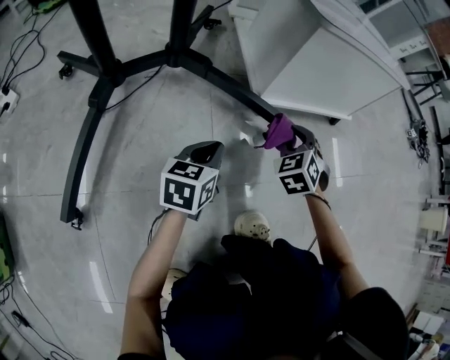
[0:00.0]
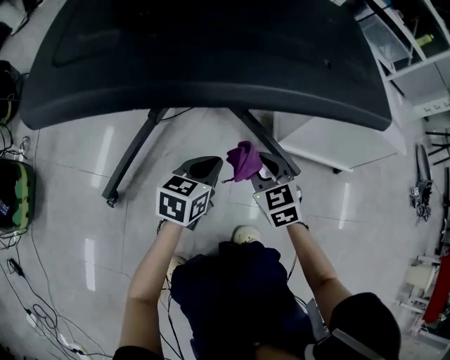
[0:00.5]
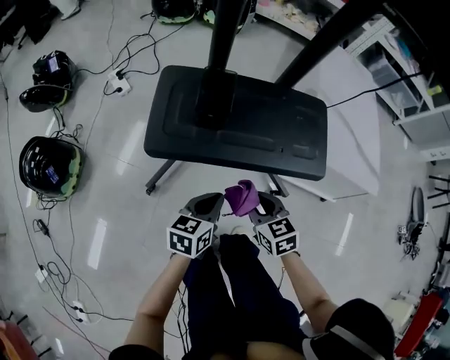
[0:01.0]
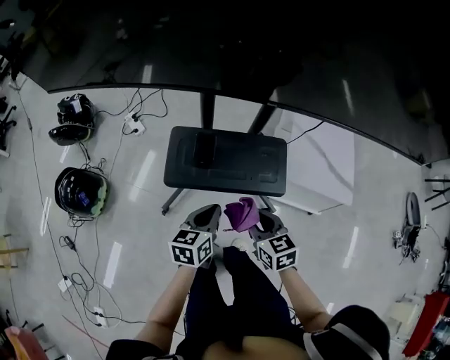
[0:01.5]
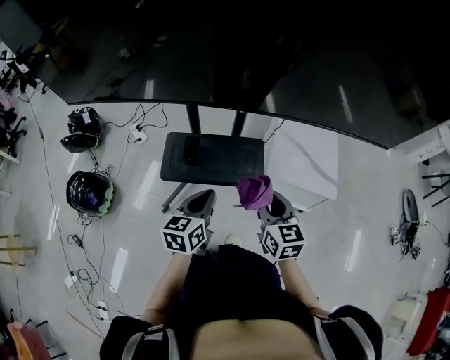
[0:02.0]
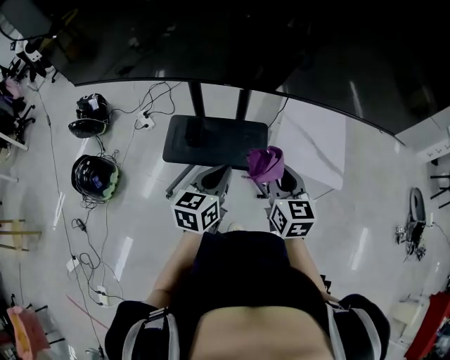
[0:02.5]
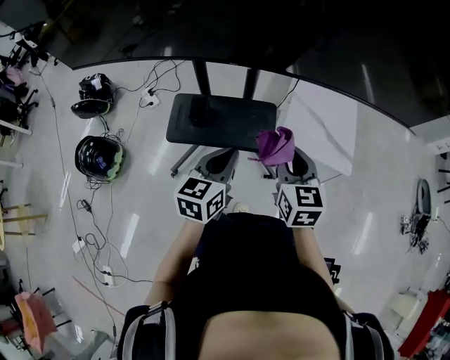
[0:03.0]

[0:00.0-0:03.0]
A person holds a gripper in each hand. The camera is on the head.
0:00.0 to 0:01.5: Both grippers move upward, roughly 60 cm. The left gripper turns by some 30 degrees; the right gripper swivels some 60 degrees.
0:01.5 to 0:03.0: Both grippers move upward and to the right, some 25 cm. The right gripper swivels some 20 degrees.

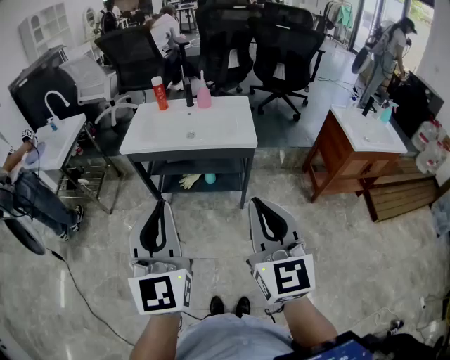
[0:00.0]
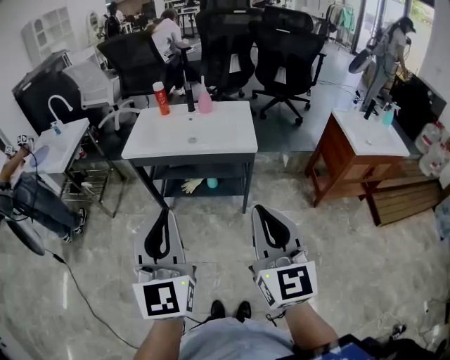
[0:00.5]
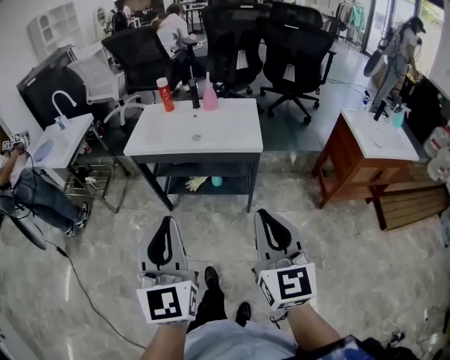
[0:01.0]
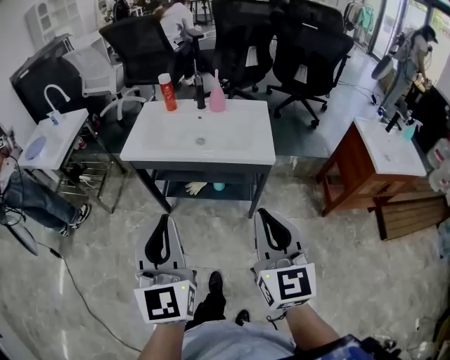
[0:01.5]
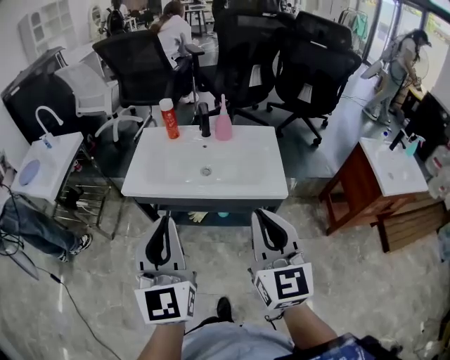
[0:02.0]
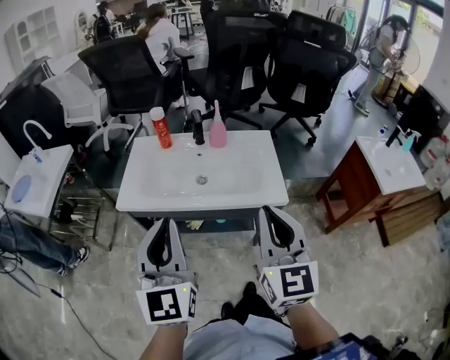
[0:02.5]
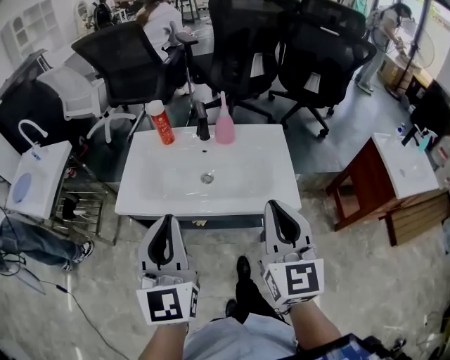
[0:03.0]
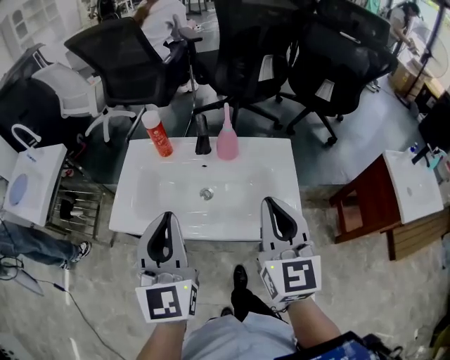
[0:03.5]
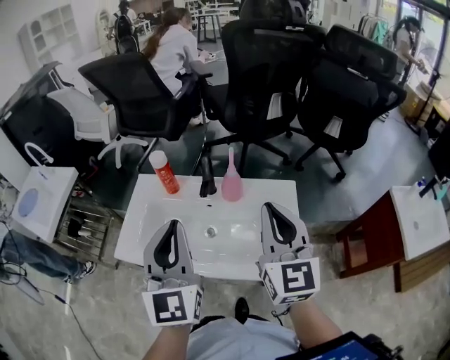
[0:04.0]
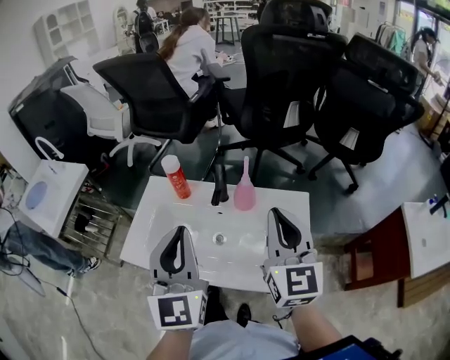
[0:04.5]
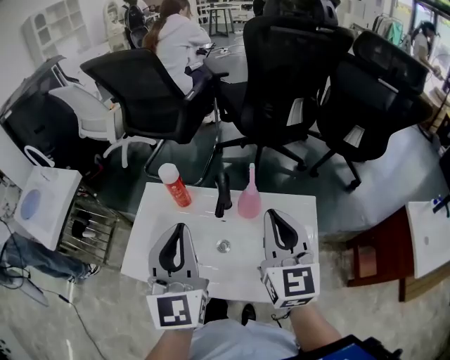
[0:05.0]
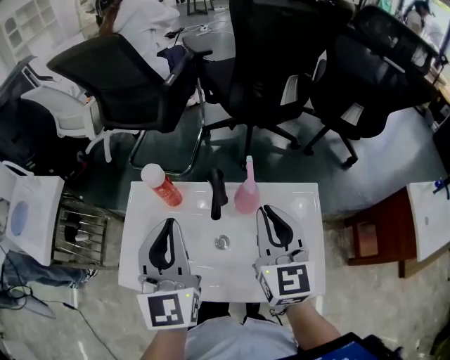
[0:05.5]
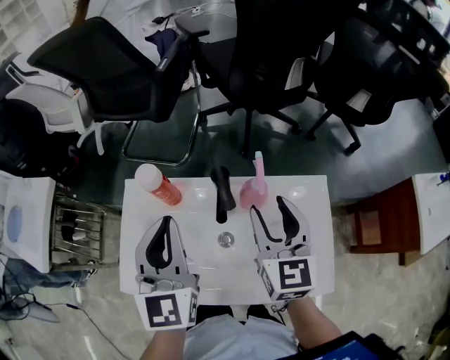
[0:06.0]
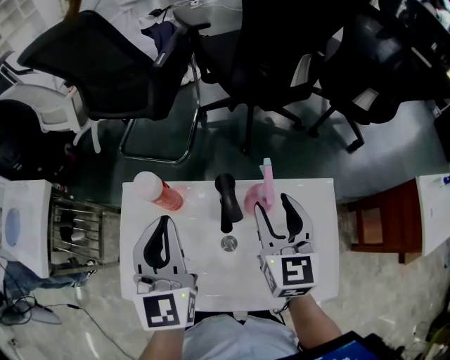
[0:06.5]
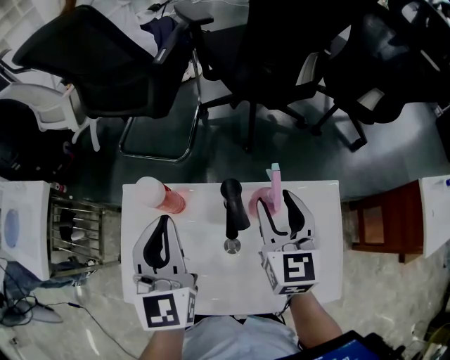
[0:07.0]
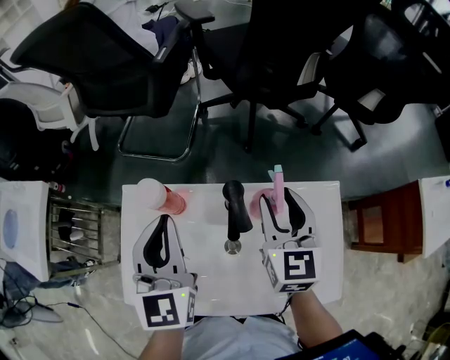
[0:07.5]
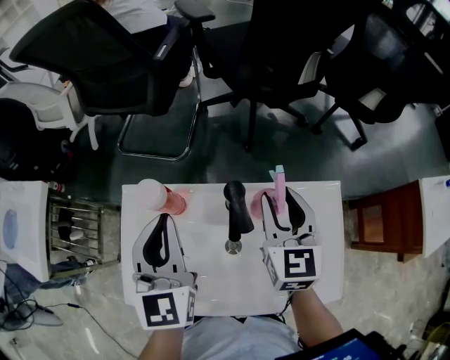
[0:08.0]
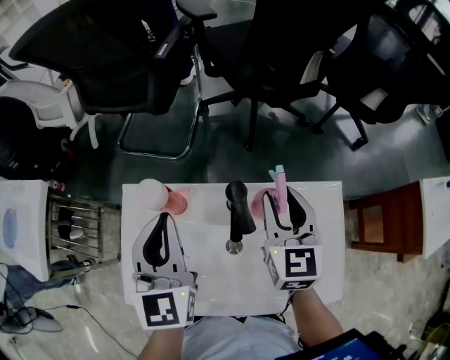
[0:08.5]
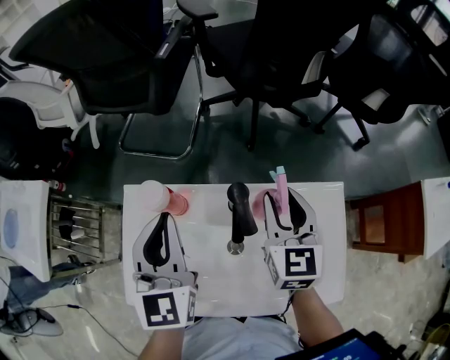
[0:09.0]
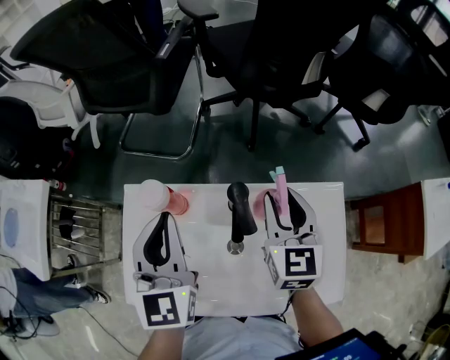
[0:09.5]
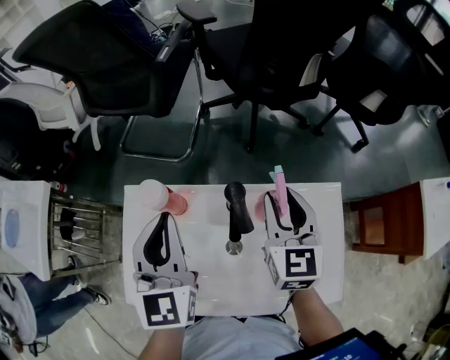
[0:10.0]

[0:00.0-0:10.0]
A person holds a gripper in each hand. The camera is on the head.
0:00.0 to 0:02.0: The grippers both shift forward by some 25 cm.
0:02.0 to 0:04.0: Both grippers move forward, some 30 cm.
0:04.0 to 0:06.0: The two grippers go approximately 20 cm forward and downward. The right gripper opens up.
0:06.0 to 0:08.0: The grippers both shift forward by approximately 5 cm.
0:08.0 to 0:10.0: Neither gripper changes place.

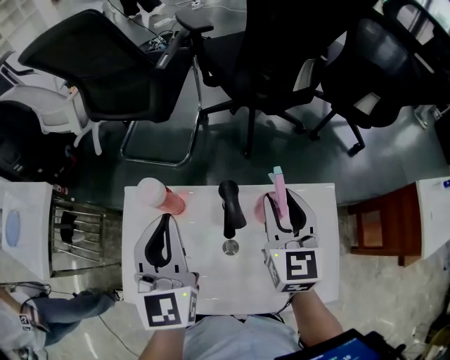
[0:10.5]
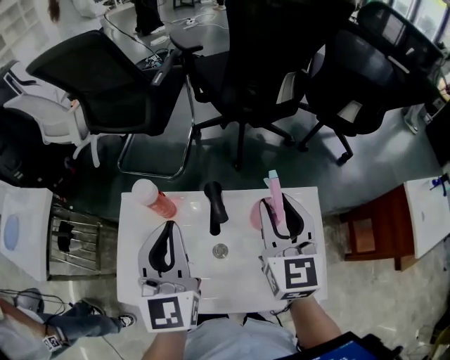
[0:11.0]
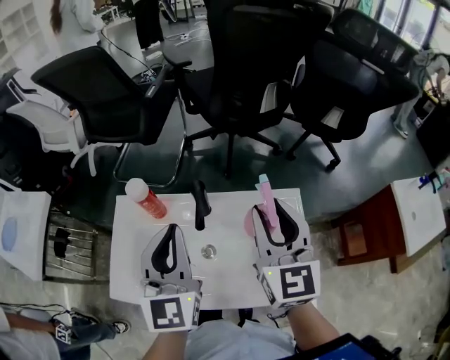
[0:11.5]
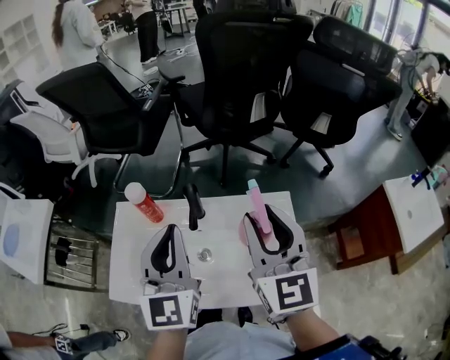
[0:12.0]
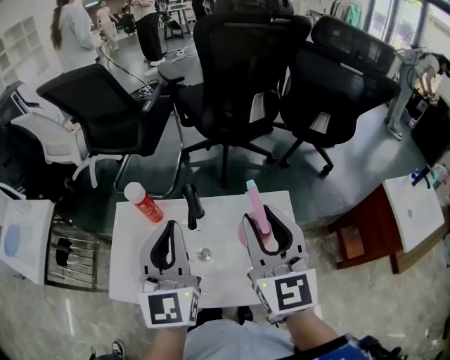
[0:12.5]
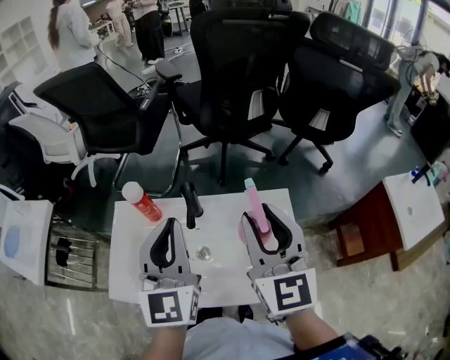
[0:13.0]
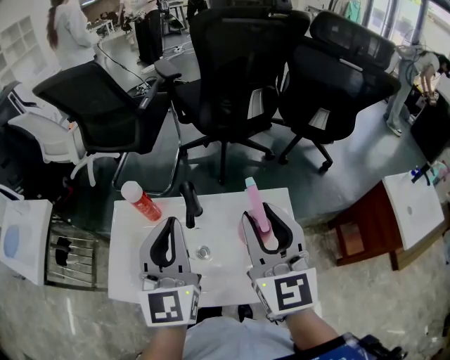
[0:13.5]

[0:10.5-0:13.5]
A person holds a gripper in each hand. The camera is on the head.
0:10.5 to 0:12.0: The right gripper goes approximately 20 cm backward and upward. Meanwhile the left gripper is displaced backward, to the right and upward by about 15 cm.
0:12.0 to 0:13.5: The grippers move only a little.

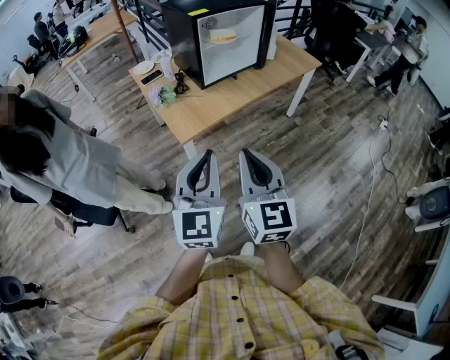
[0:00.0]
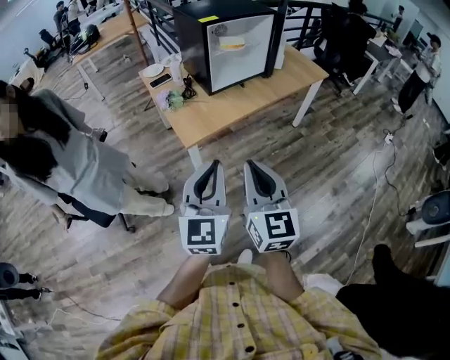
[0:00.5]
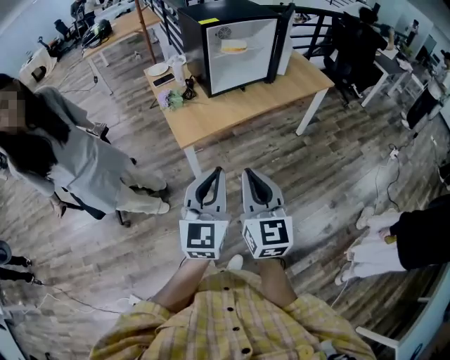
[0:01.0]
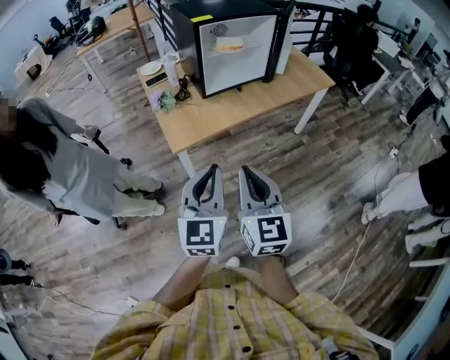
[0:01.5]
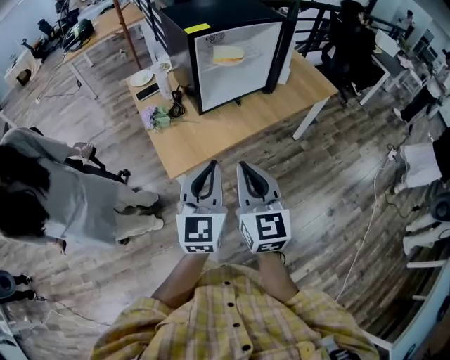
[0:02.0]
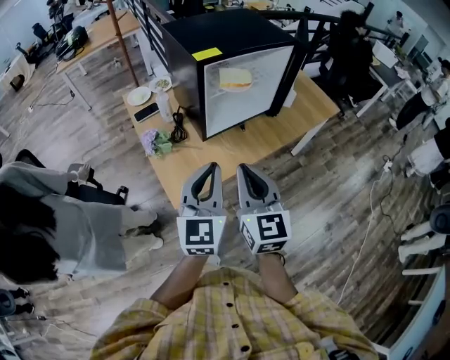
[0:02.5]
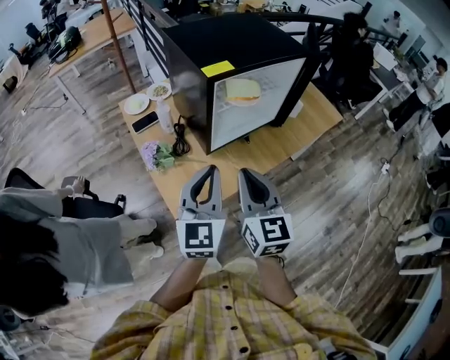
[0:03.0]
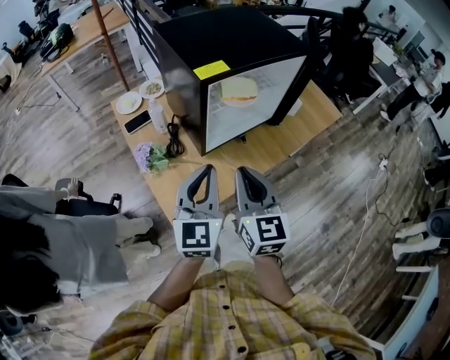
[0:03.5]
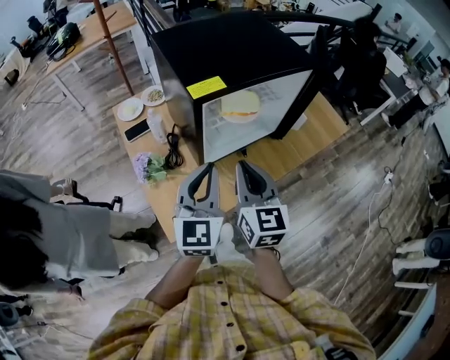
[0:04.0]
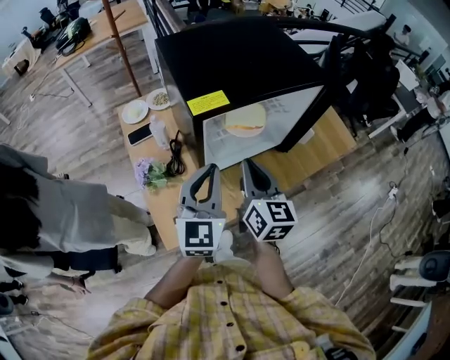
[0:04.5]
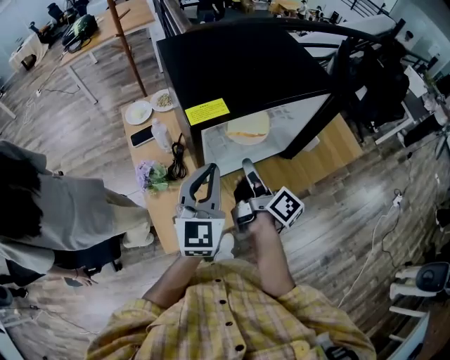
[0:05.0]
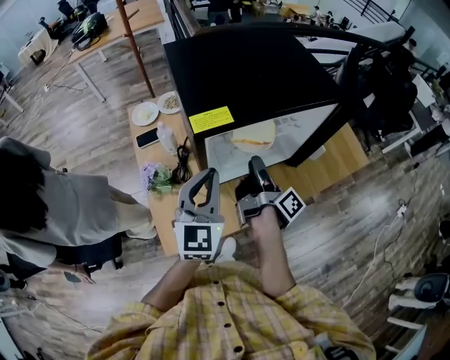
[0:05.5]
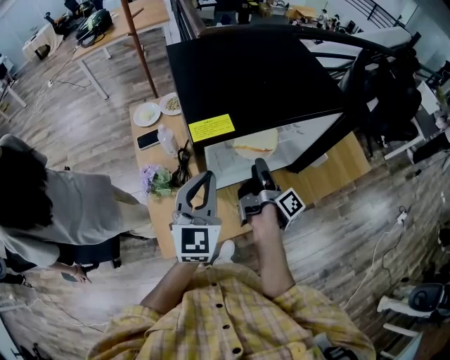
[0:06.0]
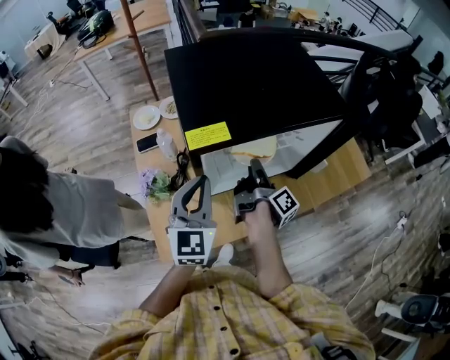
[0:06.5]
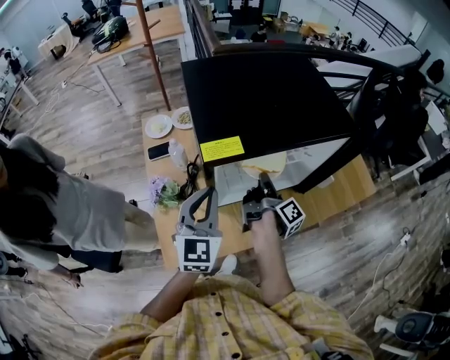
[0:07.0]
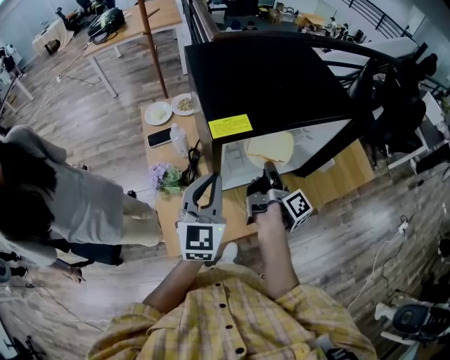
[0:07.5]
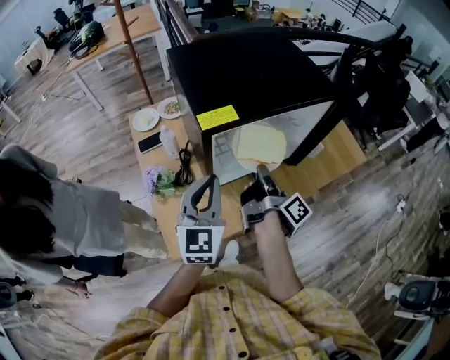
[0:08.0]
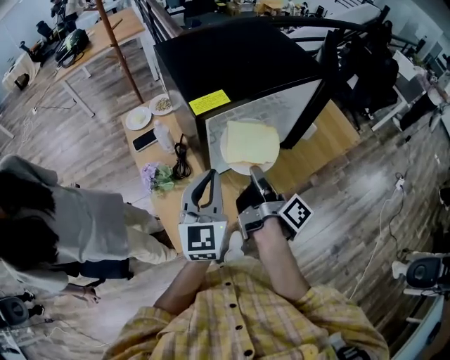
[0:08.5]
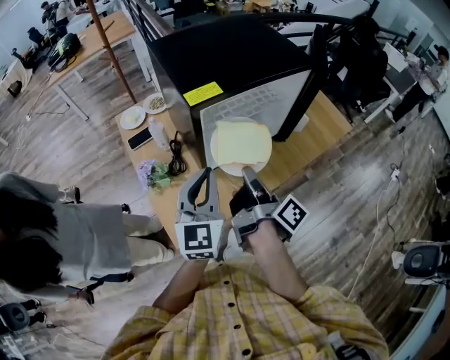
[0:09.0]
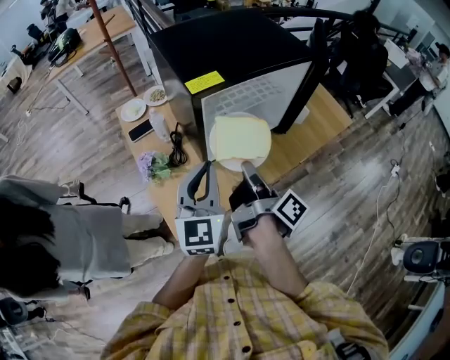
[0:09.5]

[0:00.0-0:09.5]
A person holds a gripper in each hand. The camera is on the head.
0:00.0 to 0:02.0: Both grippers move forward, approximately 20 cm.
0:02.0 to 0:04.0: Both grippers travel together forward, roughly 30 cm.
0:04.0 to 0:05.5: The left gripper shifts about 10 cm forward. Meanwhile the right gripper is displaced forward and downward by roughly 15 cm, twists about 90 degrees clockwise, seen from behind, and opens up.
0:05.5 to 0:07.5: The right gripper closes.
0:07.5 to 0:09.5: The right gripper travels backward by some 15 cm. Meanwhile the left gripper shifts some 10 cm backward.

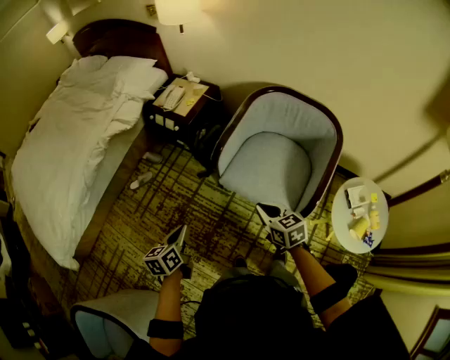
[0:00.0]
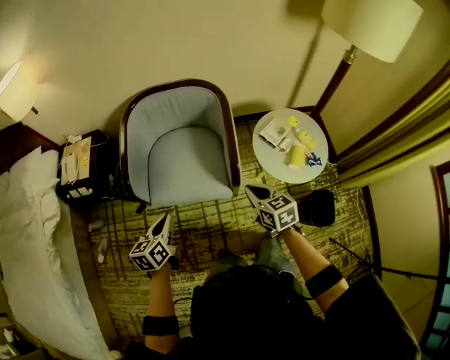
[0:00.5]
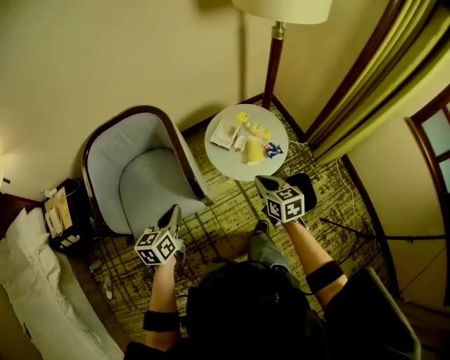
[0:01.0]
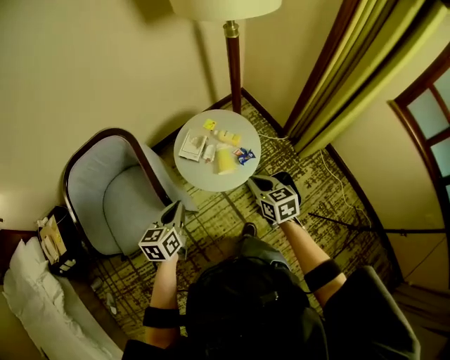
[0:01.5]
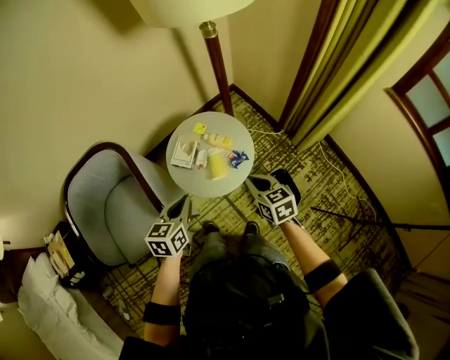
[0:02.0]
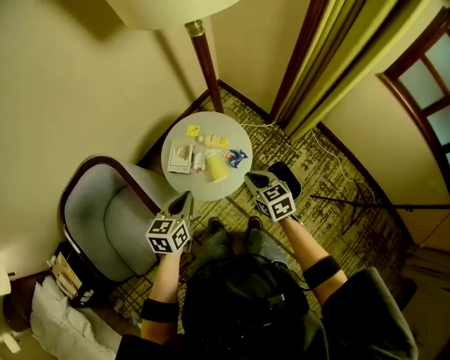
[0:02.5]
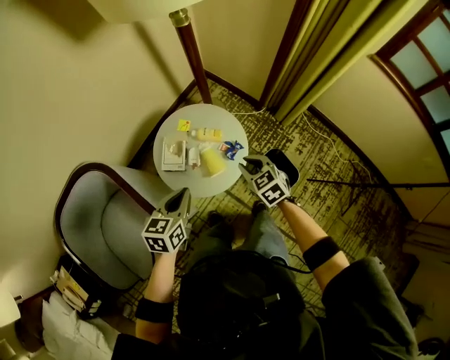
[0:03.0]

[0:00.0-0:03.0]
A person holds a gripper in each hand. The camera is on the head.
0:00.0 to 0:01.5: The pair of grippers is taken approximately 70 cm. The right gripper changes its angle by roughly 60 degrees; the left gripper rotates about 60 degrees.
0:01.5 to 0:03.0: The right gripper heads forward and downward, covering some 10 cm. The left gripper travels forward by about 15 cm, and changes its angle by roughly 30 degrees.
